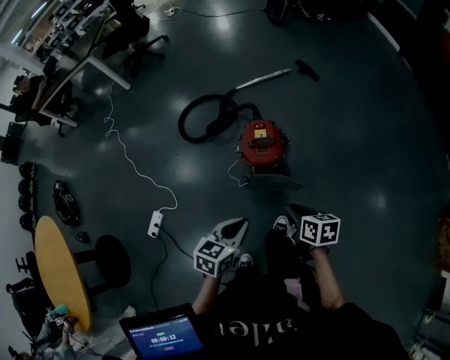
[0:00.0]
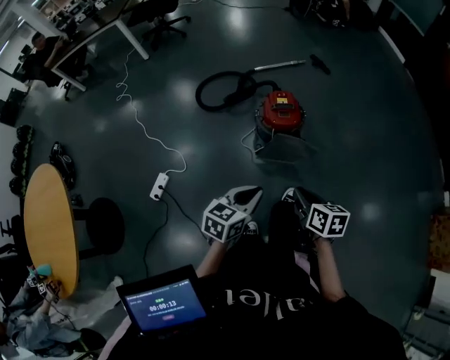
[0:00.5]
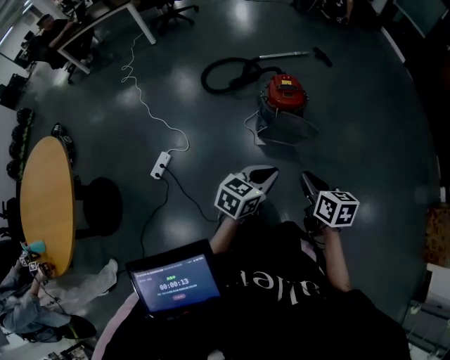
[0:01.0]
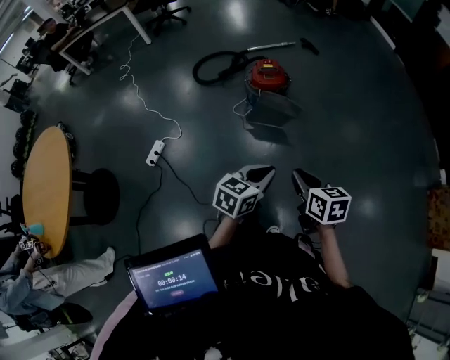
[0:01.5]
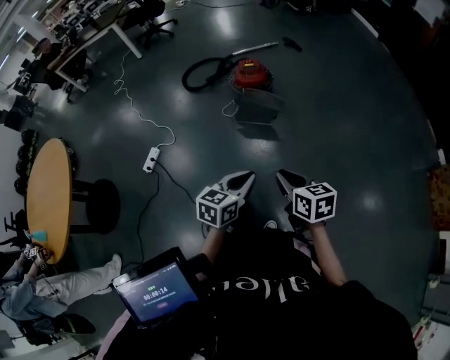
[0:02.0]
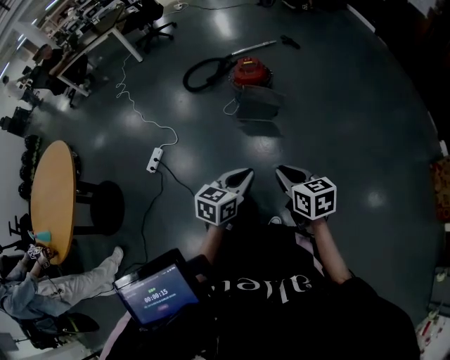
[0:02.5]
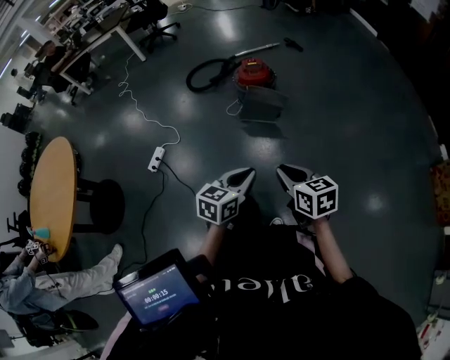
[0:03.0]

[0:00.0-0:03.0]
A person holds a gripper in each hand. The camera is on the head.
0:00.0 to 0:01.5: The pair of grippers is taken backward, about 40 cm.
0:01.5 to 0:03.0: The two grippers go about 15 cm backward.

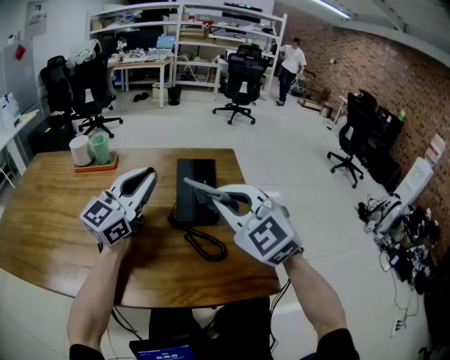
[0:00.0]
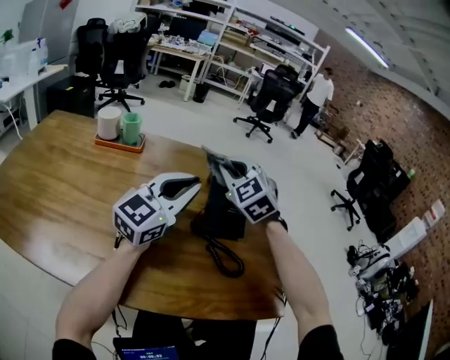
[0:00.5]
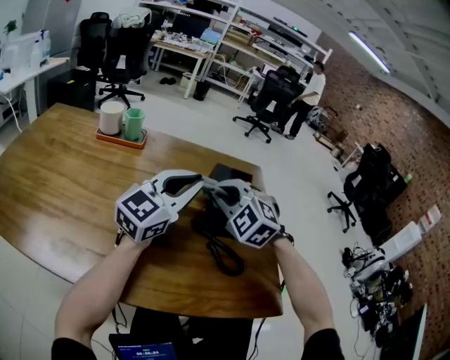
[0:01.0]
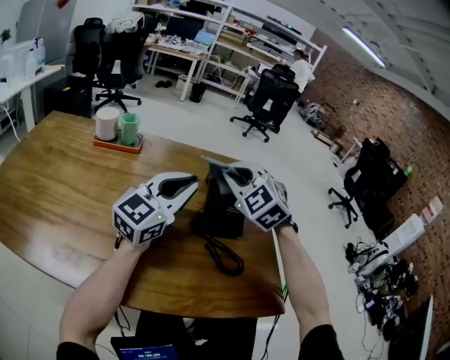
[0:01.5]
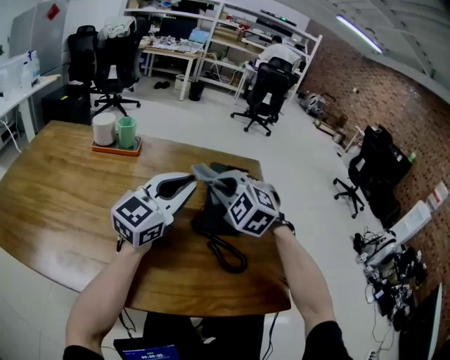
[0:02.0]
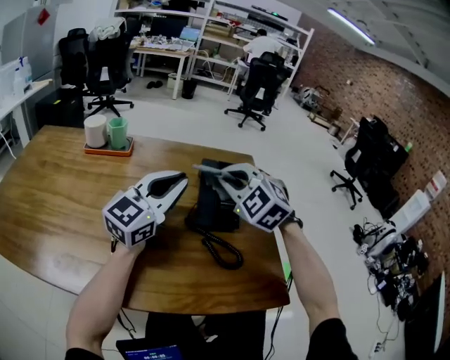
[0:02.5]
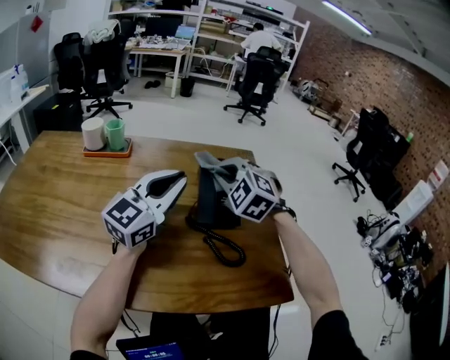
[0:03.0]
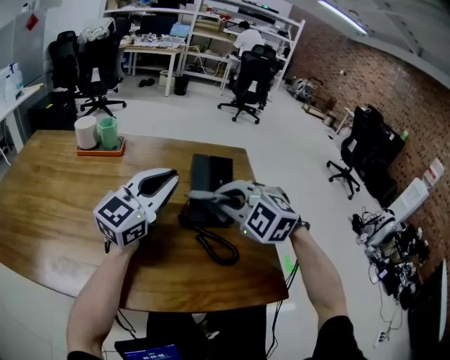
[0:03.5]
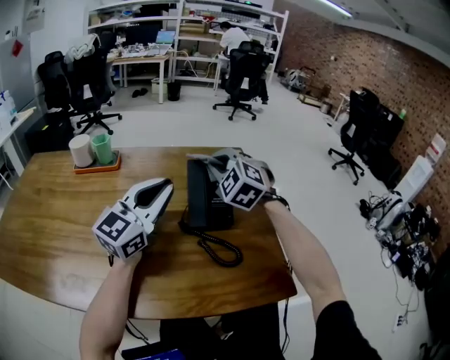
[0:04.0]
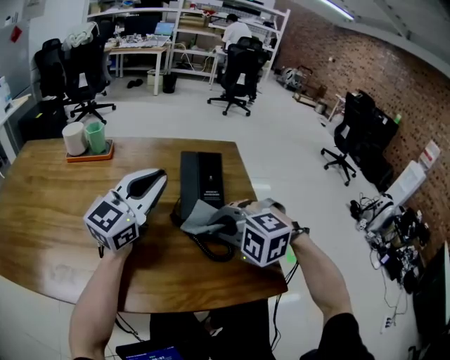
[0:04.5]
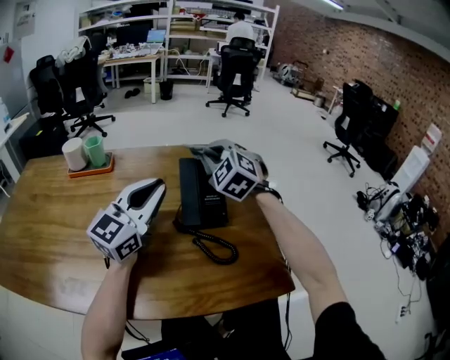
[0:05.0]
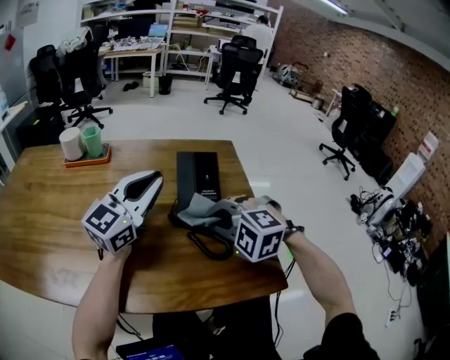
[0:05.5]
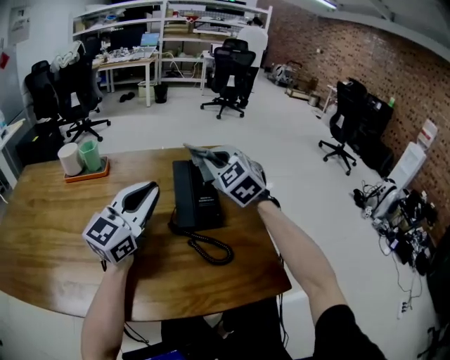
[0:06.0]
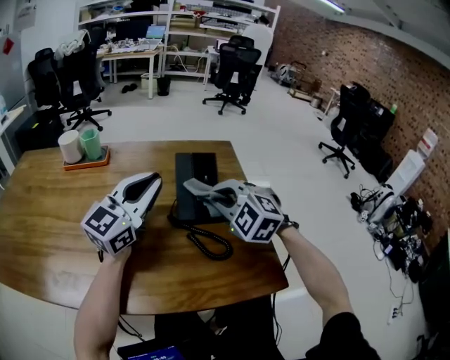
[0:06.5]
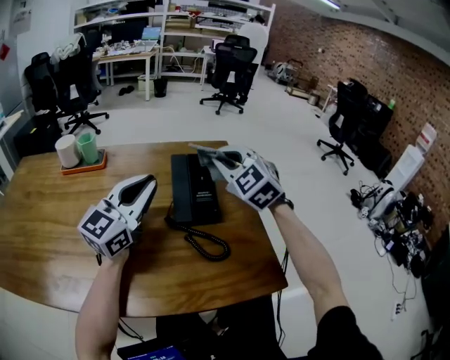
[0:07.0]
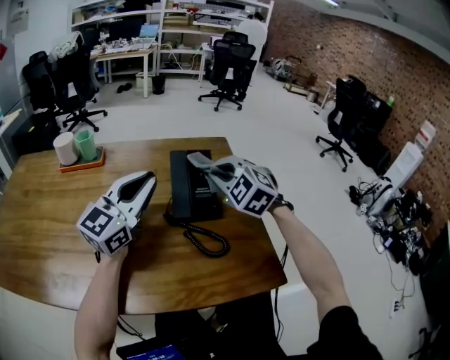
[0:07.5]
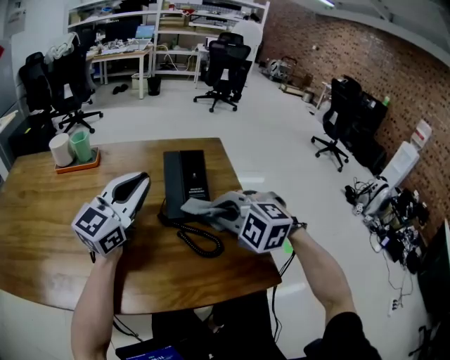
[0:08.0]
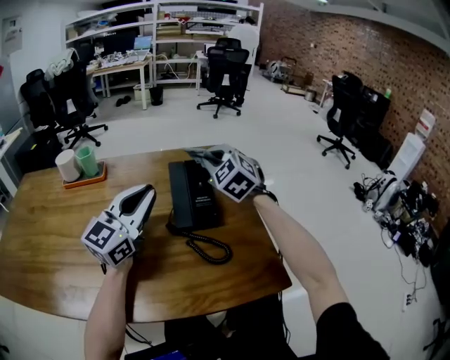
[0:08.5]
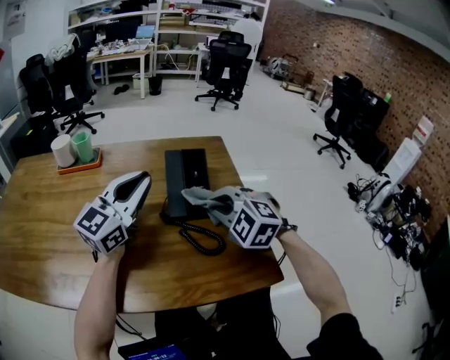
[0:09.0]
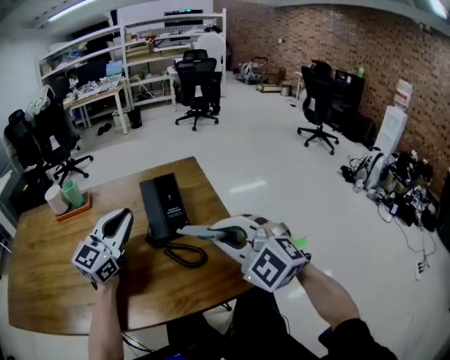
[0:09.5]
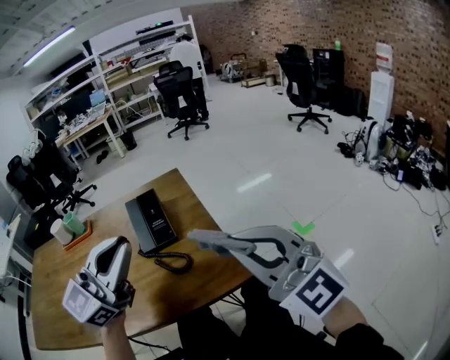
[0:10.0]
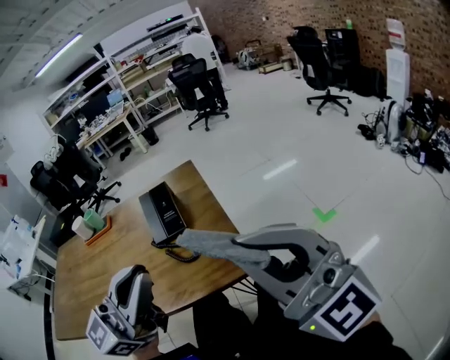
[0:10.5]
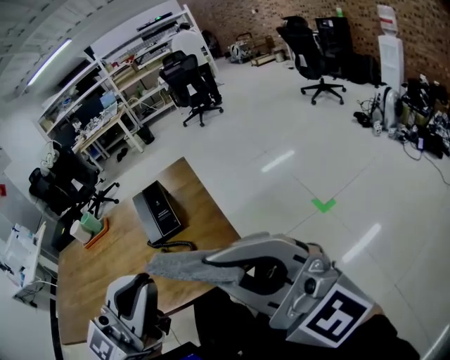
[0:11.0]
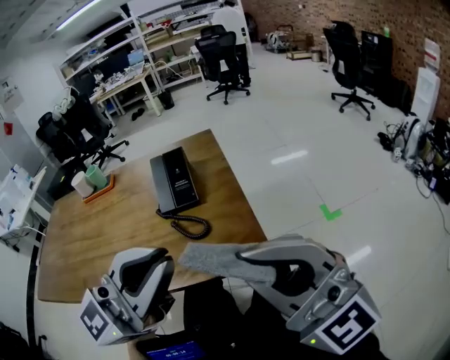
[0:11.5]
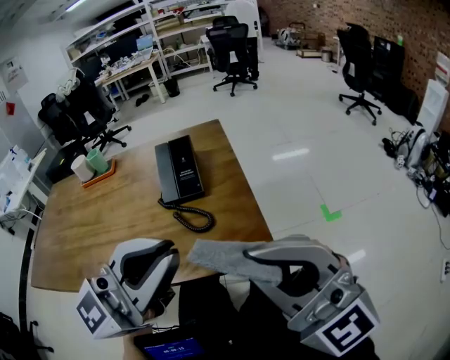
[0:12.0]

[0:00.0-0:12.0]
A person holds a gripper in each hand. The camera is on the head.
0:00.0 to 0:02.0: The right gripper swings forward and backward, approximately 15 cm each way, with 2 reversals, and turns by approximately 20 degrees.
0:02.0 to 0:04.0: The right gripper goes roughly 5 cm forward.
0:04.0 to 0:06.0: The right gripper moves forward and backward over some 20 cm, changing direction 3 times.
0:06.0 to 0:08.0: The right gripper moves forward and backward over approximately 15 cm, changing direction 2 times, and changes its angle by roughly 30 degrees.
0:08.0 to 0:10.0: Both grippers move backward, upward and to the right, some 25 cm. The right gripper points its fingers some 50 degrees further upward.
0:10.0 to 0:12.0: The right gripper is displaced backward by approximately 5 cm, while the left gripper is displaced backward and to the right by some 15 cm.

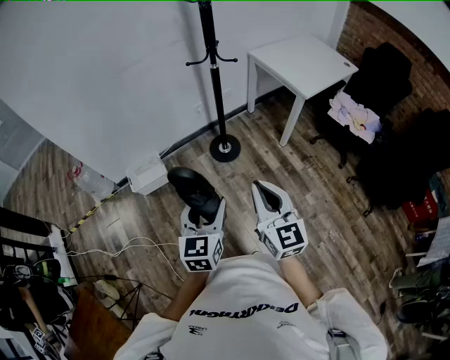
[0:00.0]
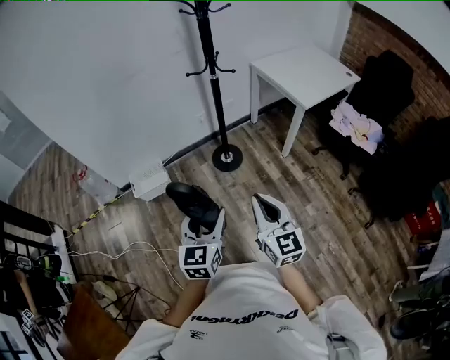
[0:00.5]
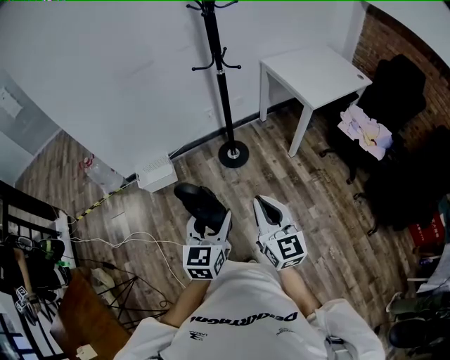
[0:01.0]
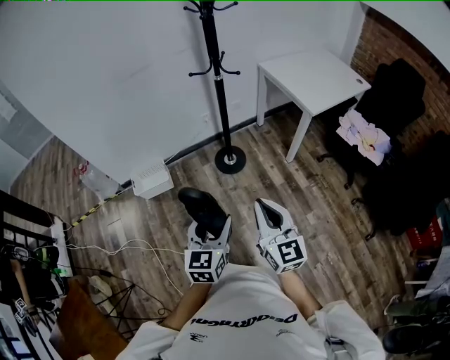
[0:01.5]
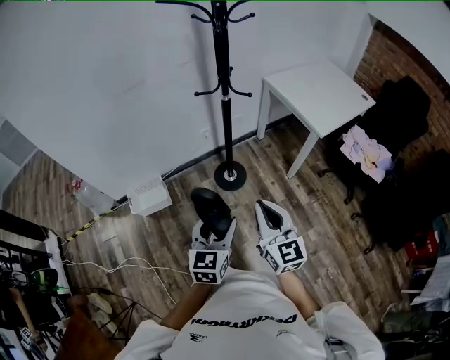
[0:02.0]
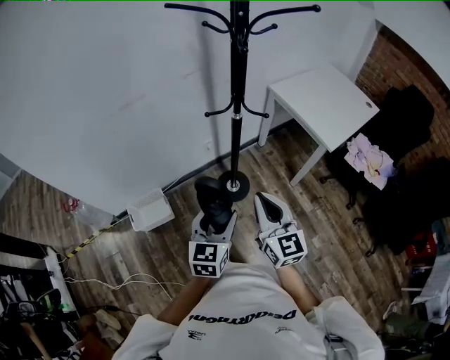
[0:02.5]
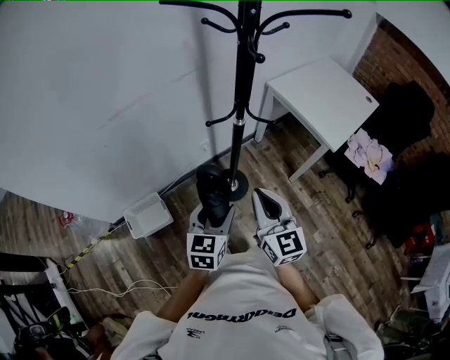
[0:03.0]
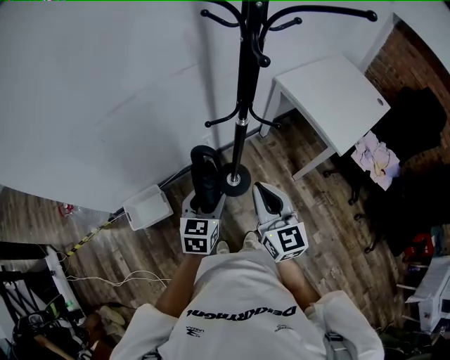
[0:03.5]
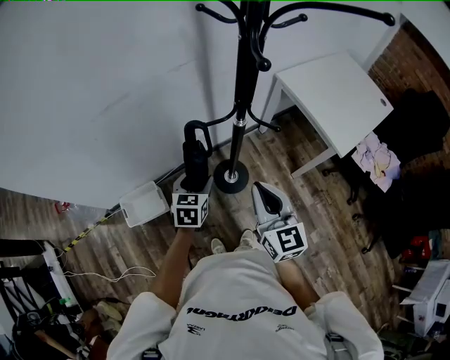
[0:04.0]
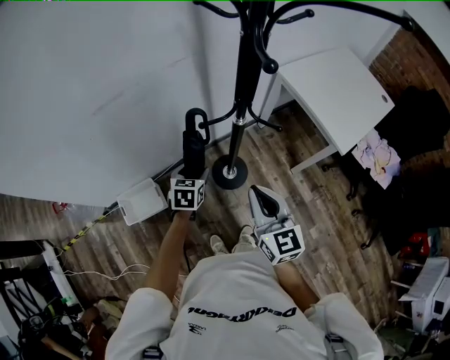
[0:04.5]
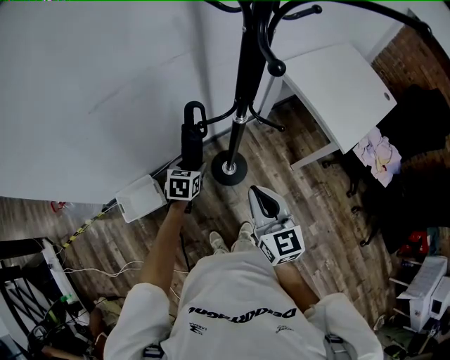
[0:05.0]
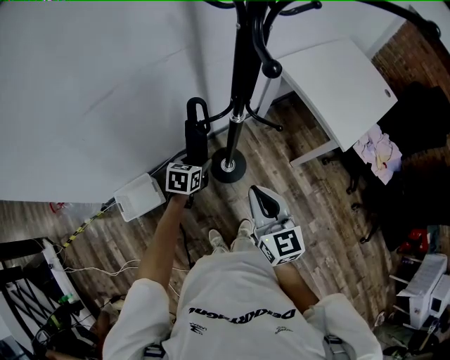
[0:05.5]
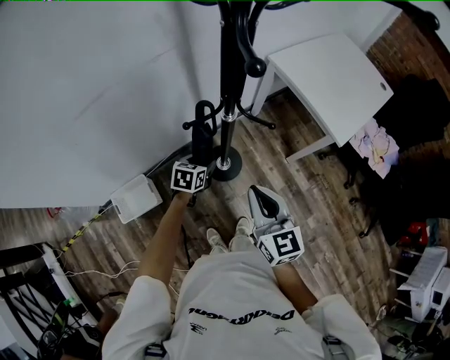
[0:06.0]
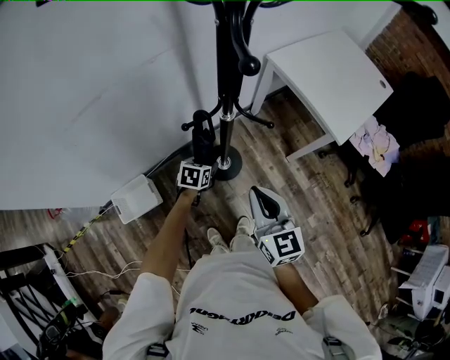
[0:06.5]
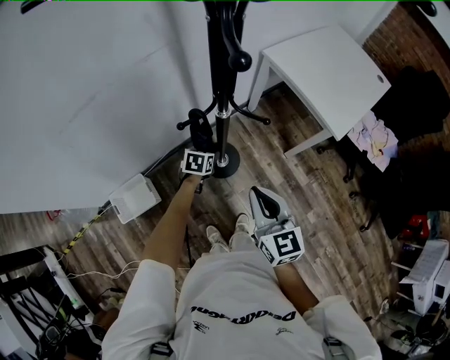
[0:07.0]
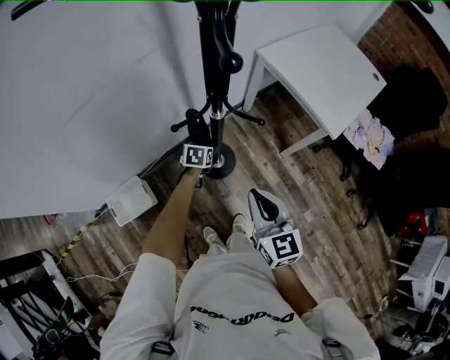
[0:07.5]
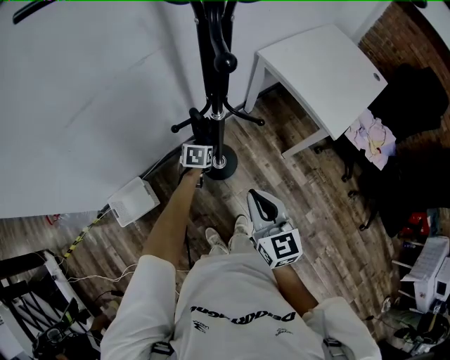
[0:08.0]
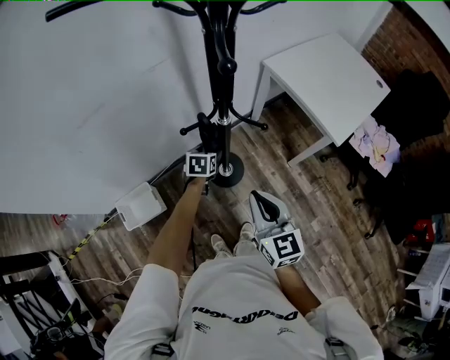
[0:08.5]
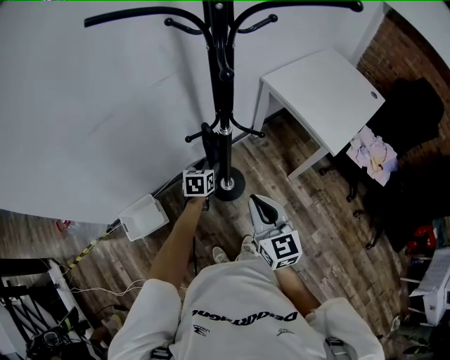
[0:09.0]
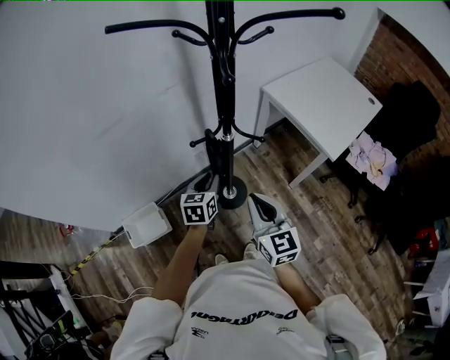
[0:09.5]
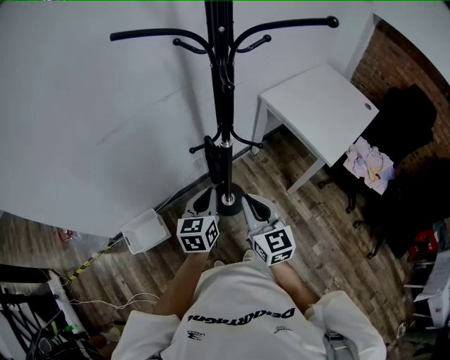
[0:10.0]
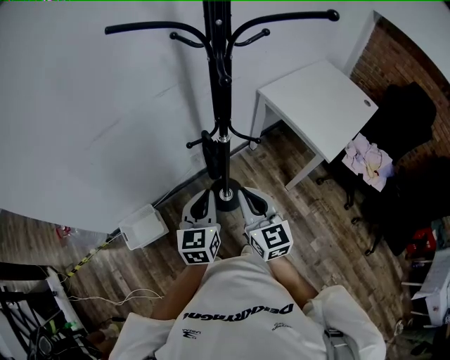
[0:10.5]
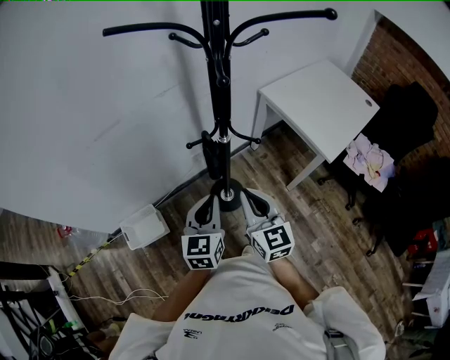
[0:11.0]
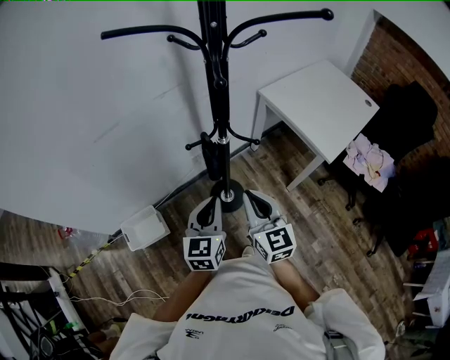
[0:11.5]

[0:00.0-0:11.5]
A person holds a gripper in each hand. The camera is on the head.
0:00.0 to 0:02.0: The grippers both shift forward by some 15 cm.
0:02.0 to 0:04.0: Both grippers travel together forward, some 40 cm.
0:04.0 to 0:06.0: The left gripper travels downward, forward and to the right by roughly 15 cm, and changes its angle by approximately 20 degrees. The right gripper is displaced downward by approximately 5 cm.
0:06.0 to 0:07.5: The left gripper goes about 10 cm downward and forward.
0:07.5 to 0:09.5: The right gripper travels upward by some 5 cm. Meanwhile the left gripper shifts approximately 25 cm upward and backward, rotates approximately 30 degrees, and closes.
0:09.5 to 0:11.5: The left gripper moves backward and upward, about 15 cm.
